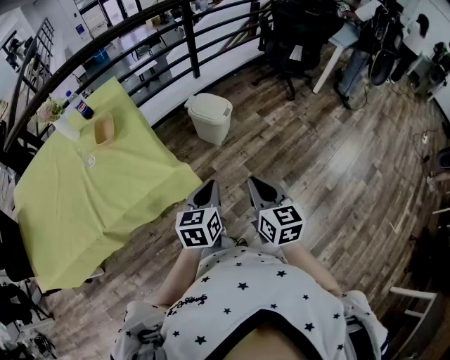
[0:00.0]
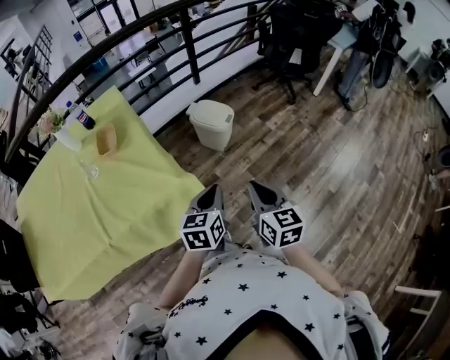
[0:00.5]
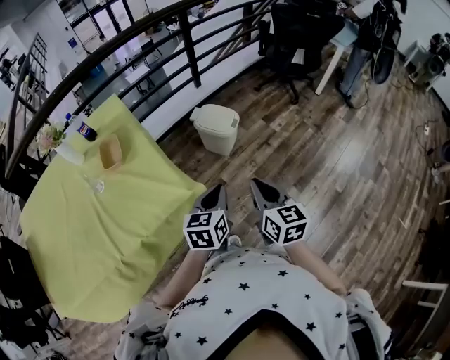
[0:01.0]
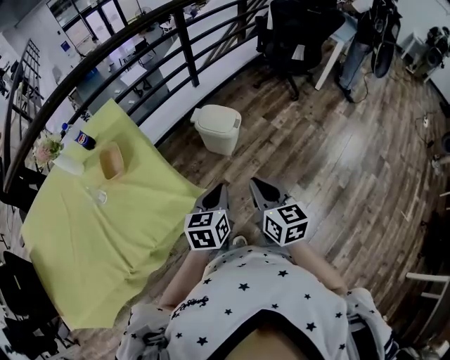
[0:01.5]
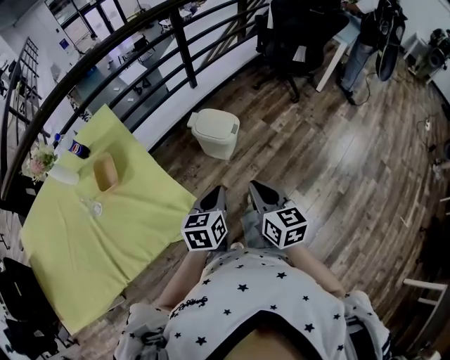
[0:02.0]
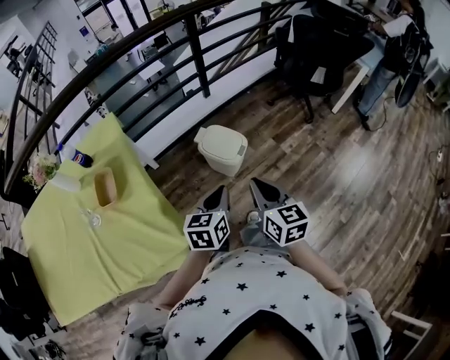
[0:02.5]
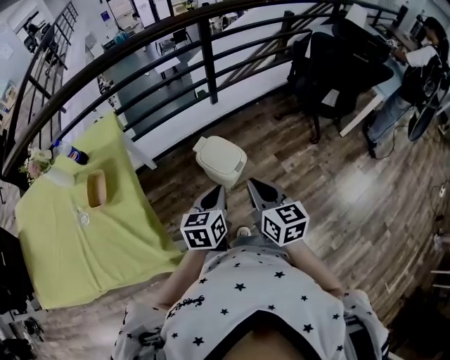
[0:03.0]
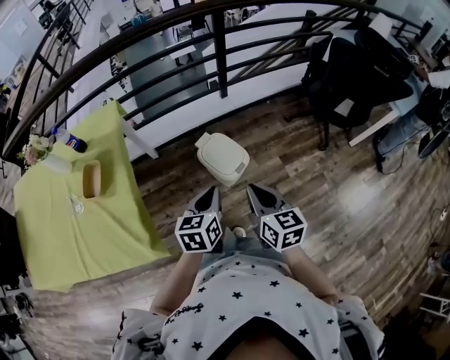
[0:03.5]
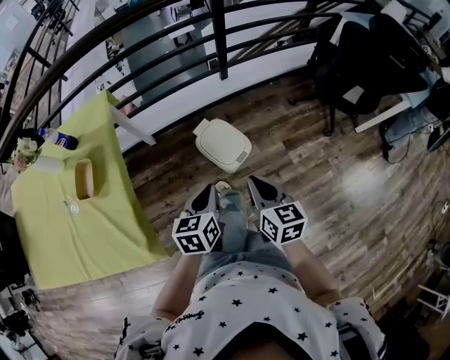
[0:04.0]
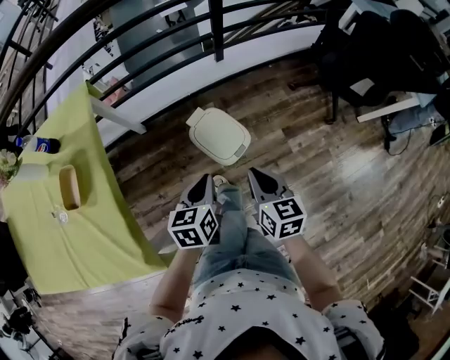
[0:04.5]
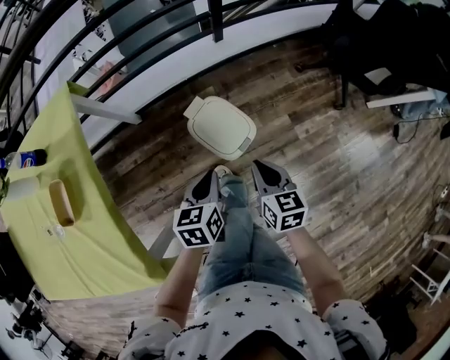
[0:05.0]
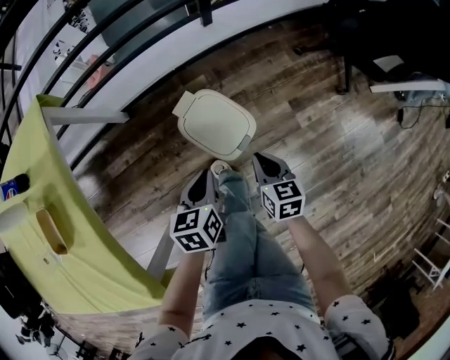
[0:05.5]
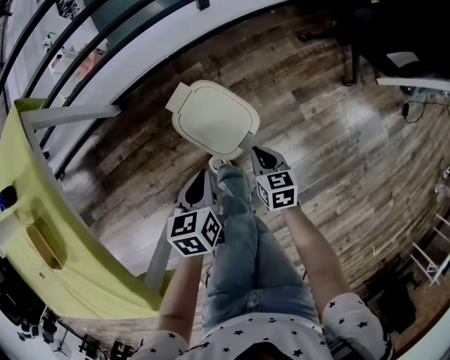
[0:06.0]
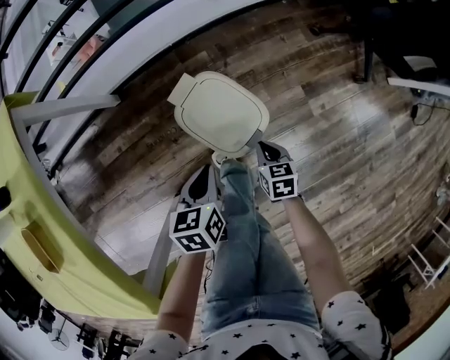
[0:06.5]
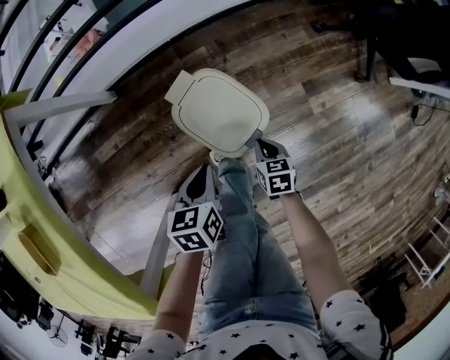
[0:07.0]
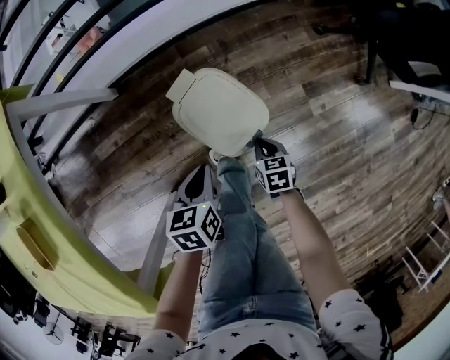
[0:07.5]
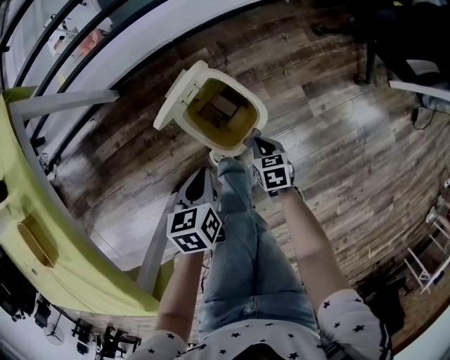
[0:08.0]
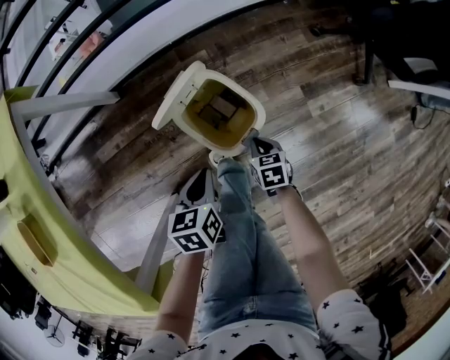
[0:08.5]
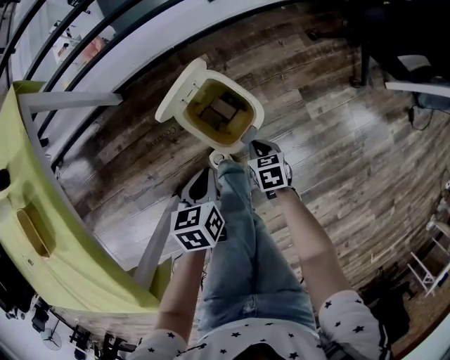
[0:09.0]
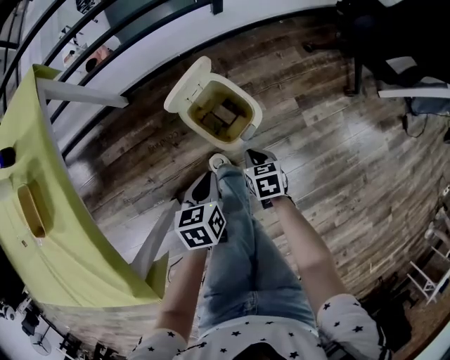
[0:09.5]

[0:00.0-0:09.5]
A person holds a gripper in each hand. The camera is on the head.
0:00.0 to 0:02.0: The left gripper goes roughly 15 cm forward. The right gripper goes about 15 cm forward and to the left.
0:02.0 to 0:04.0: Both grippers travel together forward and to the right, some 30 cm. The right gripper changes its angle by roughly 20 degrees; the left gripper changes its angle by about 20 degrees.
0:04.0 to 0:05.5: Both grippers travel together downward and forward, about 30 cm.
0:05.5 to 0:07.5: The left gripper heads downward, covering approximately 10 cm, while the right gripper is displaced downward by approximately 20 cm, and swivels roughly 20 degrees.
0:07.5 to 0:09.5: The left gripper heads backward, covering approximately 10 cm. Meanwhile the right gripper shifts approximately 10 cm upward.

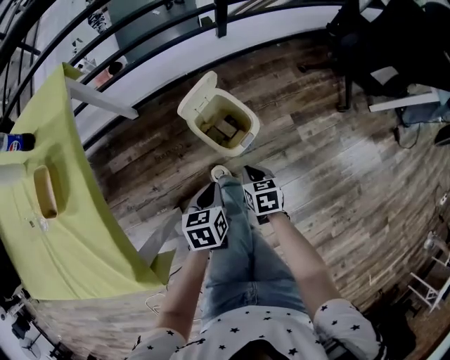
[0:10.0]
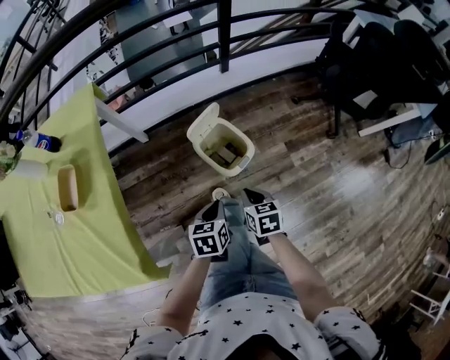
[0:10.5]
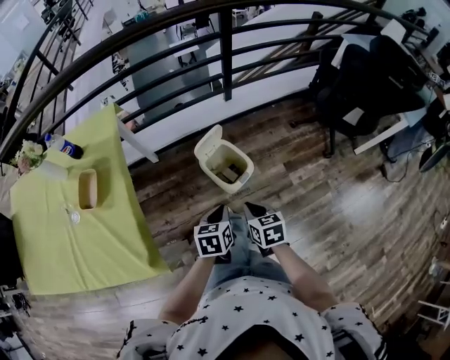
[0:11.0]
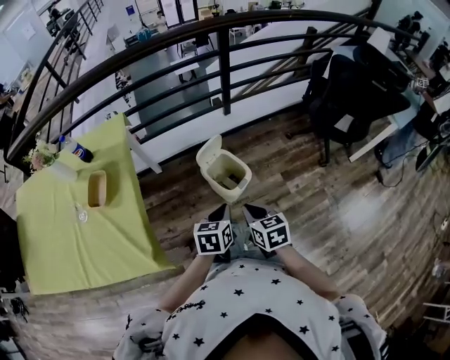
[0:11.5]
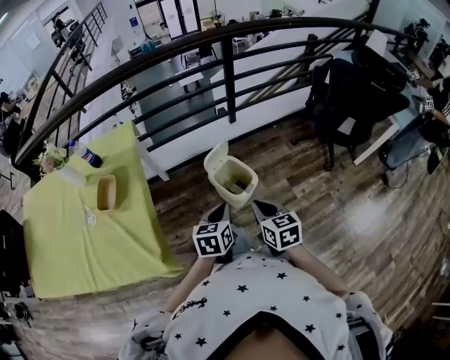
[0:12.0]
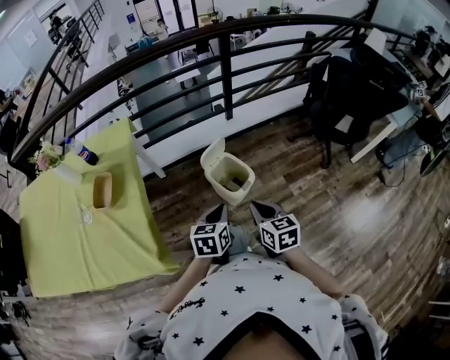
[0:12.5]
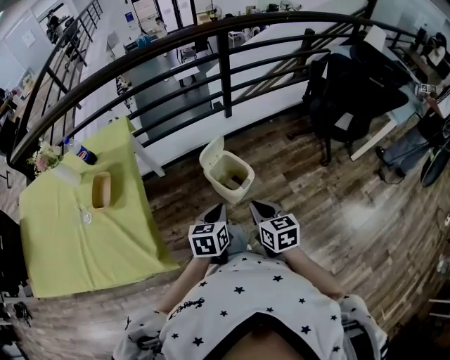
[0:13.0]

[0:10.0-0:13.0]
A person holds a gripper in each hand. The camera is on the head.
0:10.0 to 0:11.5: Both grippers move upward, approximately 25 cm.
0:11.5 to 0:13.0: The grippers stay close to where they were, moving slightly.

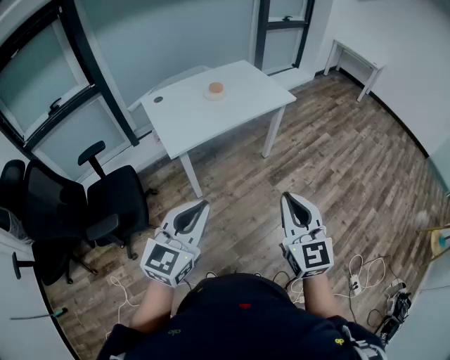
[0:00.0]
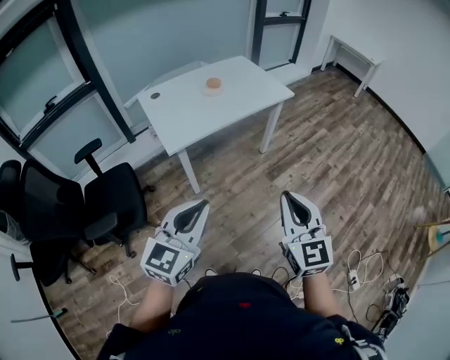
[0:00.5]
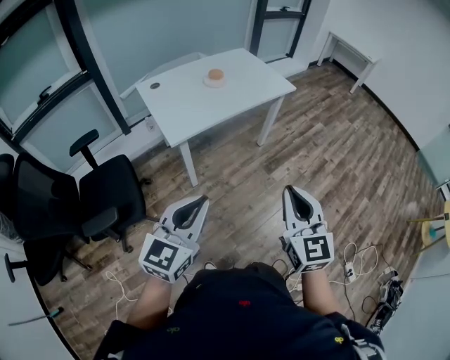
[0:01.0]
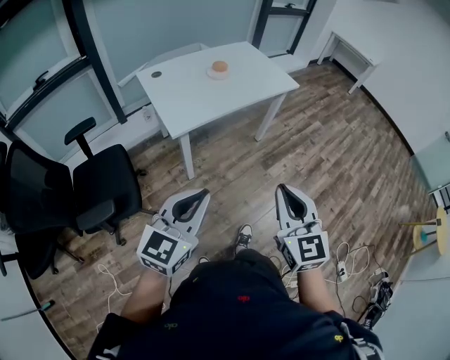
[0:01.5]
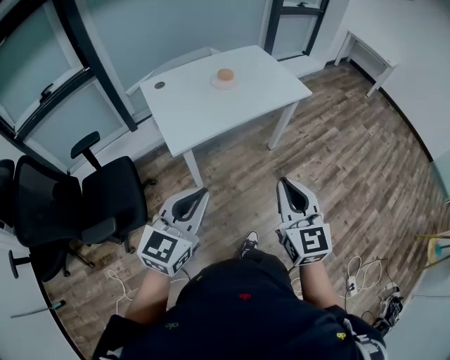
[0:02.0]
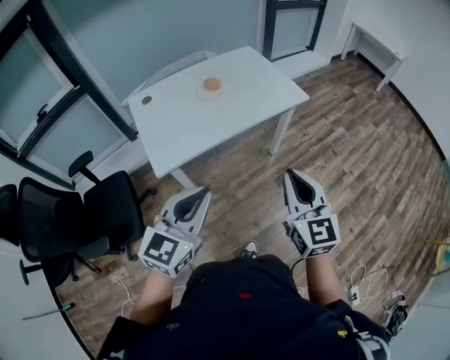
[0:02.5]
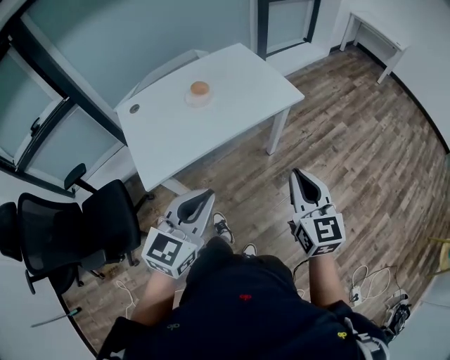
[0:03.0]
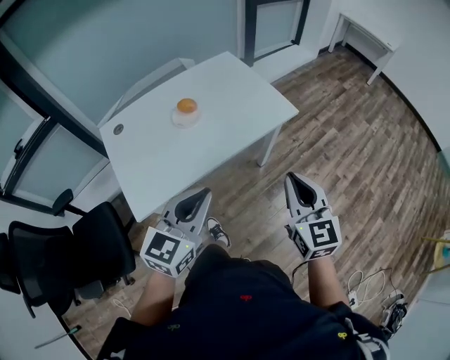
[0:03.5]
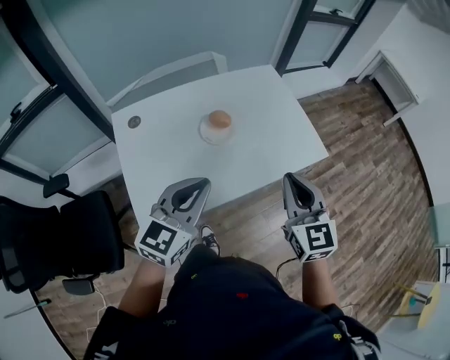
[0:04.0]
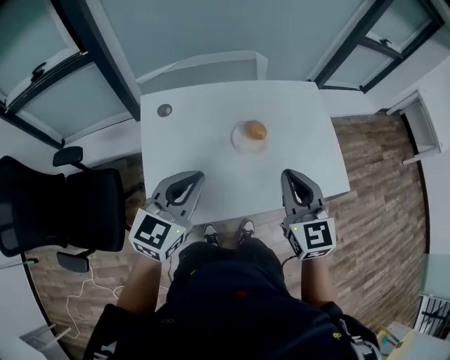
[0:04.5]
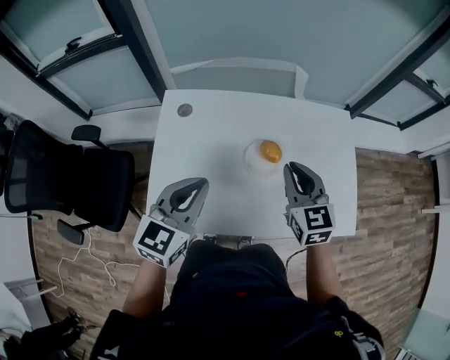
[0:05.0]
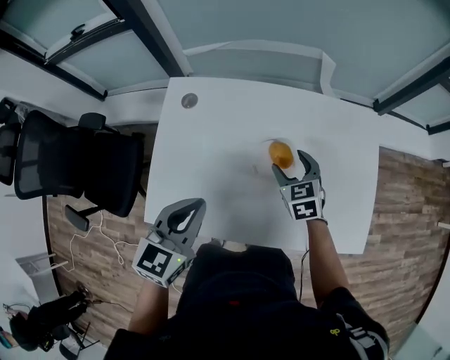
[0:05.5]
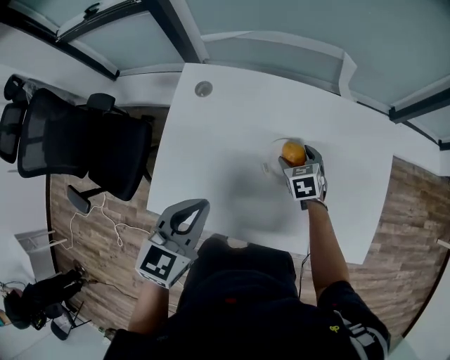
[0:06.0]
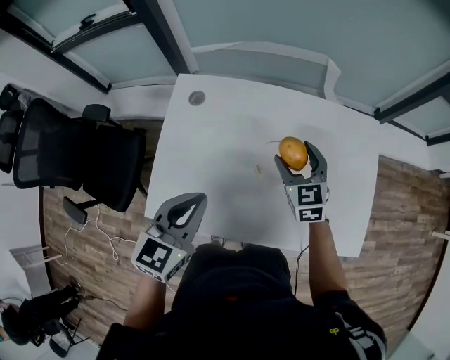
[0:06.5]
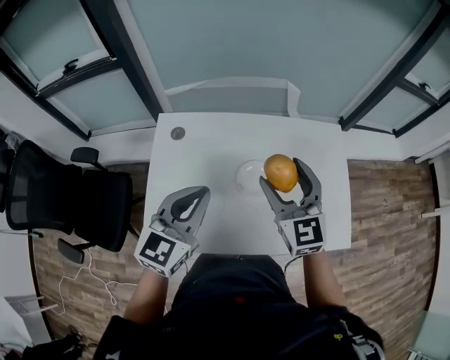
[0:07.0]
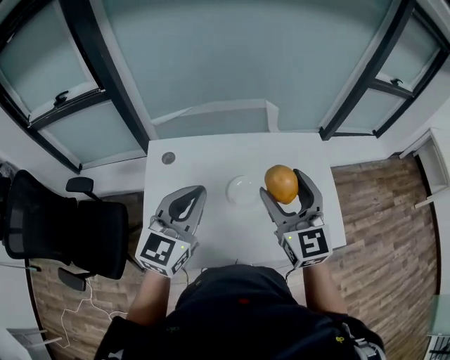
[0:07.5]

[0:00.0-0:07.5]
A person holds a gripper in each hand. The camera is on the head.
0:00.0 to 0:02.0: Both grippers move forward and to the left, some 15 cm.
0:02.0 to 0:04.0: The pair of grippers is taken forward, approximately 50 cm.
0:04.0 to 0:05.5: The left gripper shifts by roughly 20 cm, and turns by about 40 degrees. Meanwhile the right gripper ends up some 40 cm from where it was, changes its angle by roughly 40 degrees, and opens up.
0:05.5 to 0:07.5: The left gripper goes approximately 15 cm upward, and turns by about 30 degrees. Meanwhile the right gripper is displaced upward by approximately 30 cm, and angles its fingers upward, by some 40 degrees.

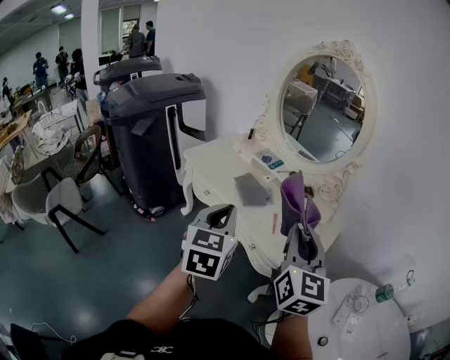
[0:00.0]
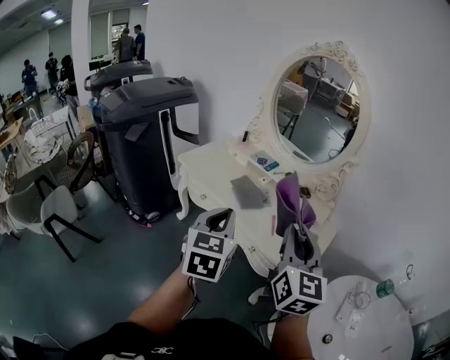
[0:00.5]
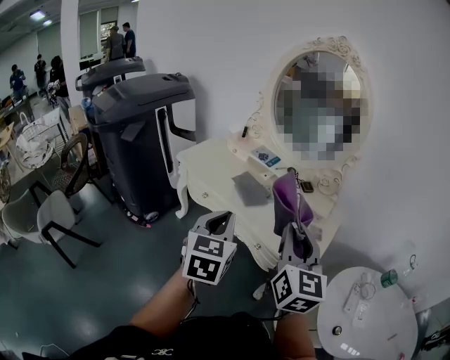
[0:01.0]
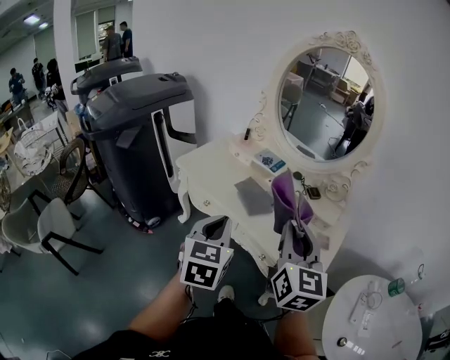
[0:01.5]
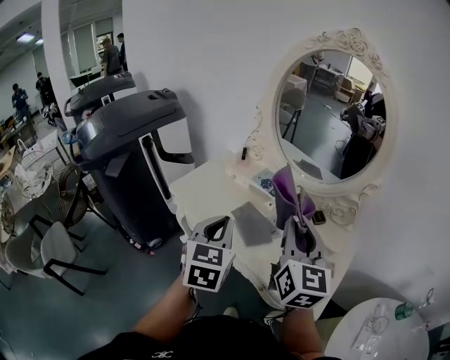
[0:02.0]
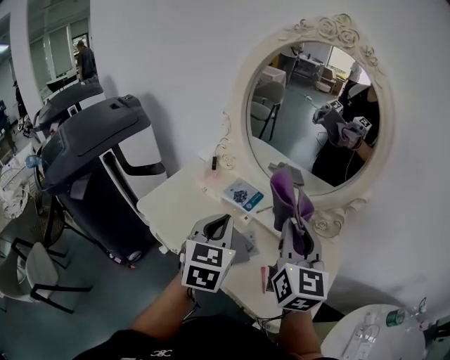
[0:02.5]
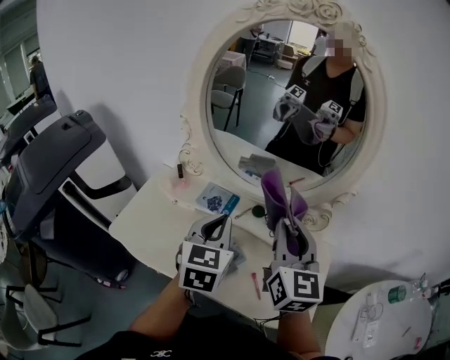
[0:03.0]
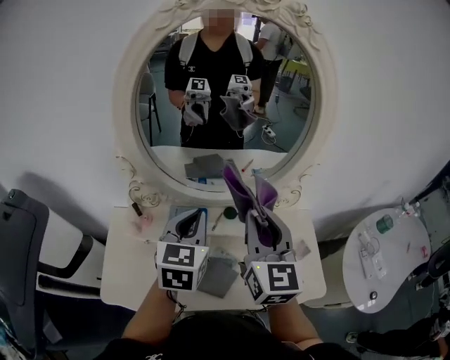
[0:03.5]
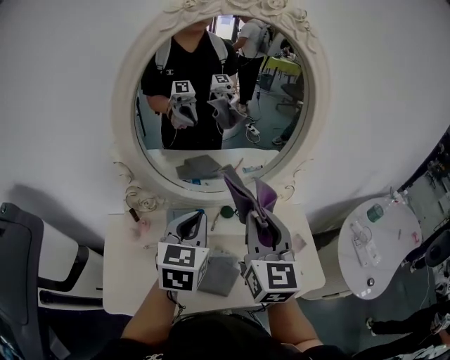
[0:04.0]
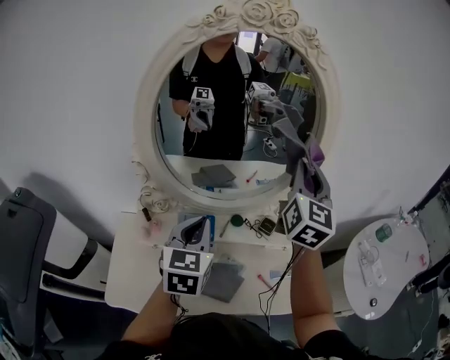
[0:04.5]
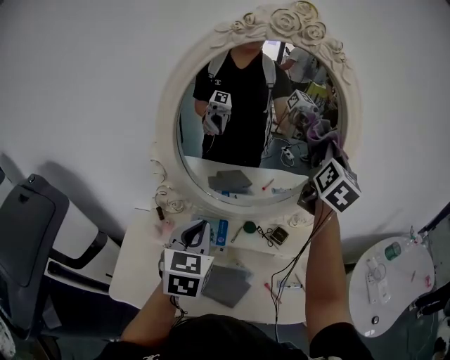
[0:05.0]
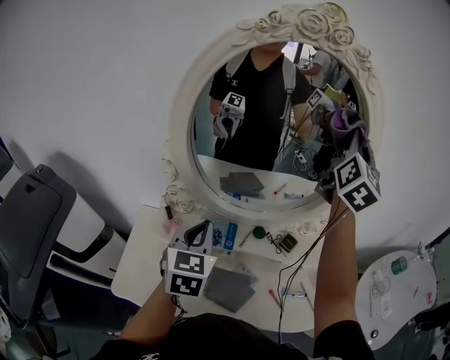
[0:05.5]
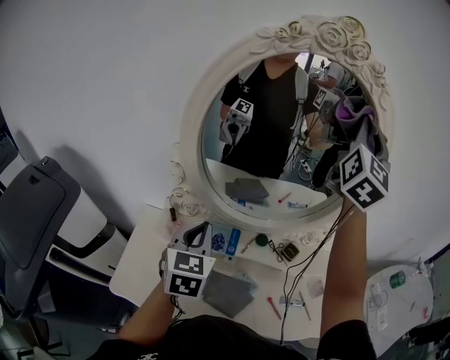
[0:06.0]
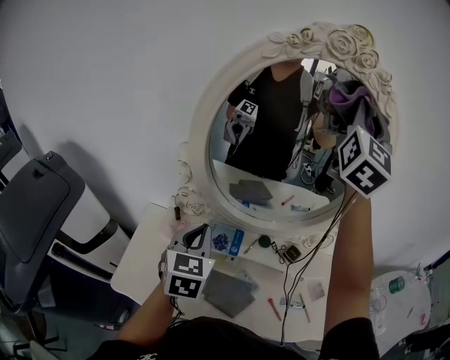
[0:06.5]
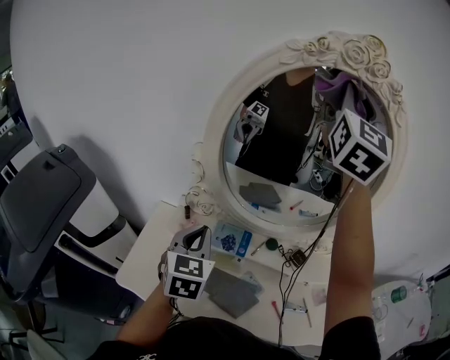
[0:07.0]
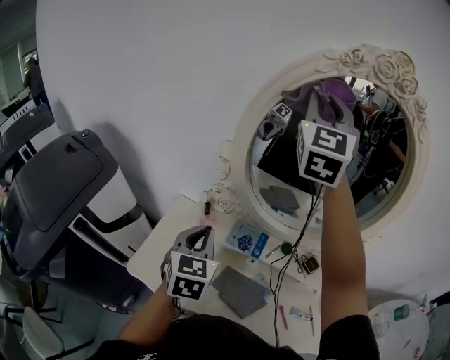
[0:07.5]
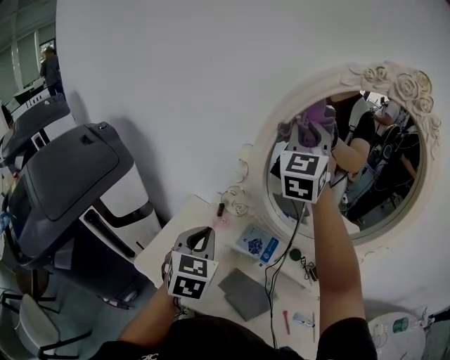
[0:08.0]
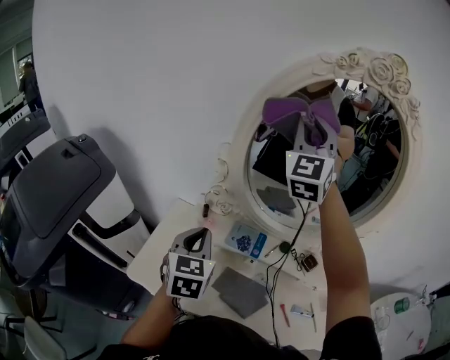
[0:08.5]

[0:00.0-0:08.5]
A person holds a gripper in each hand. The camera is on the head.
0:00.0 to 0:02.0: The two grippers go about 20 cm forward.
0:02.0 to 0:04.0: The left gripper changes place by about 30 cm, and swivels some 50 degrees; the right gripper changes place by roughly 20 cm, and changes its angle by about 40 degrees.
0:04.0 to 0:06.5: The left gripper moves to the left, some 10 cm, and turns by some 20 degrees; the right gripper goes some 35 cm upward and forward, and turns by roughly 30 degrees.
0:06.5 to 0:08.5: The right gripper is displaced to the left and downward by about 25 cm, and turns by roughly 30 degrees; the left gripper is displaced to the left by about 10 cm.
